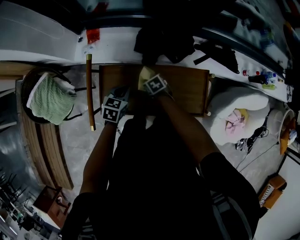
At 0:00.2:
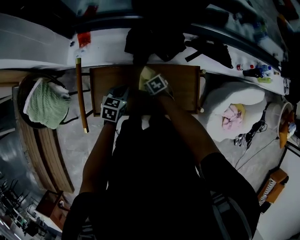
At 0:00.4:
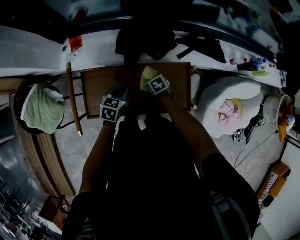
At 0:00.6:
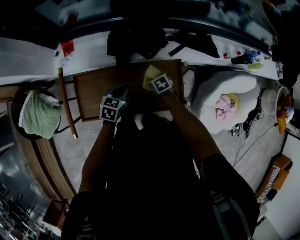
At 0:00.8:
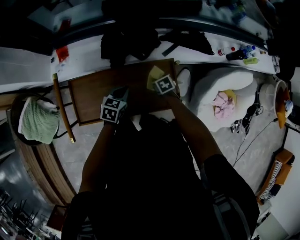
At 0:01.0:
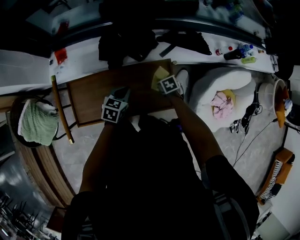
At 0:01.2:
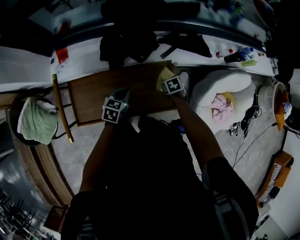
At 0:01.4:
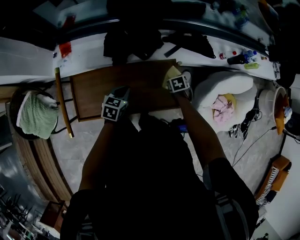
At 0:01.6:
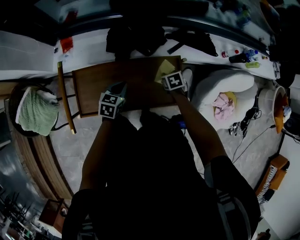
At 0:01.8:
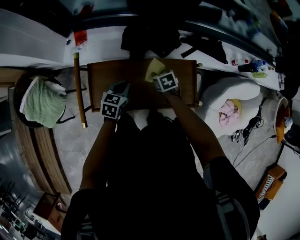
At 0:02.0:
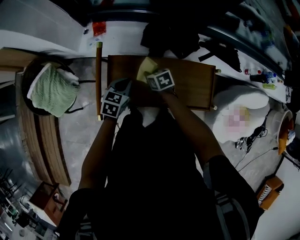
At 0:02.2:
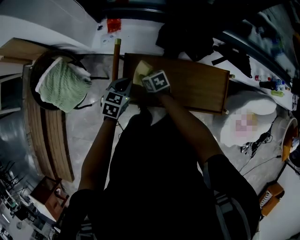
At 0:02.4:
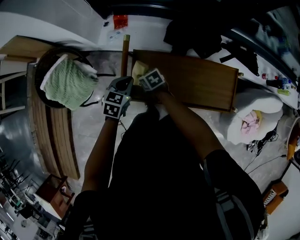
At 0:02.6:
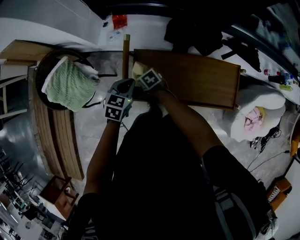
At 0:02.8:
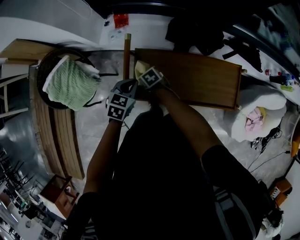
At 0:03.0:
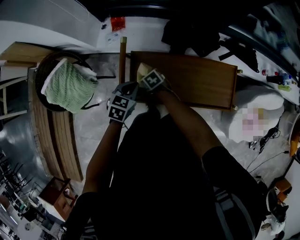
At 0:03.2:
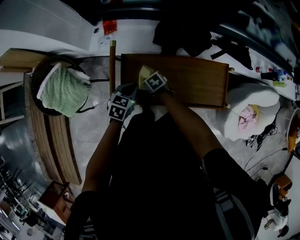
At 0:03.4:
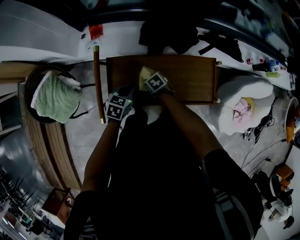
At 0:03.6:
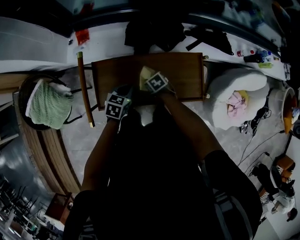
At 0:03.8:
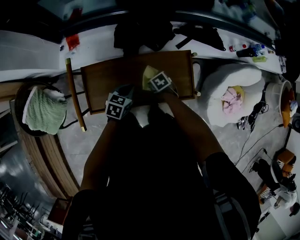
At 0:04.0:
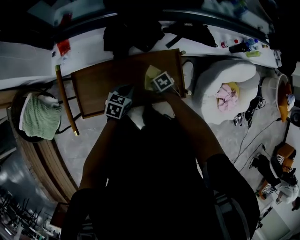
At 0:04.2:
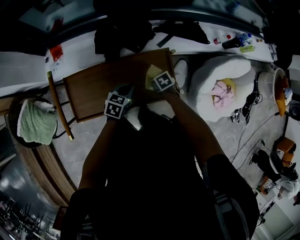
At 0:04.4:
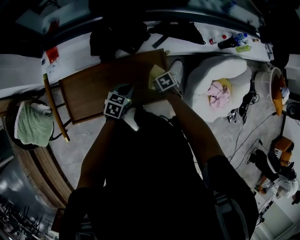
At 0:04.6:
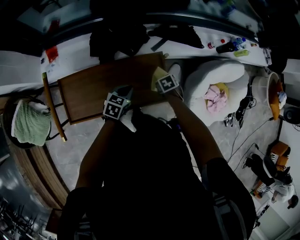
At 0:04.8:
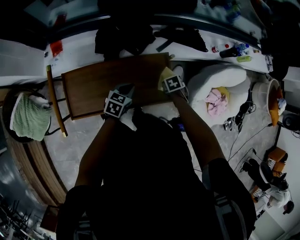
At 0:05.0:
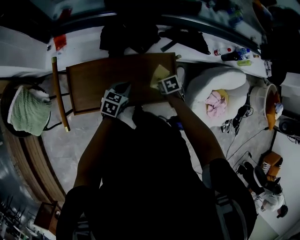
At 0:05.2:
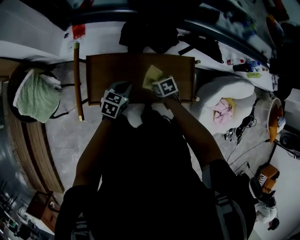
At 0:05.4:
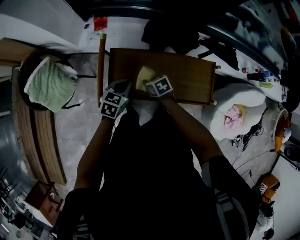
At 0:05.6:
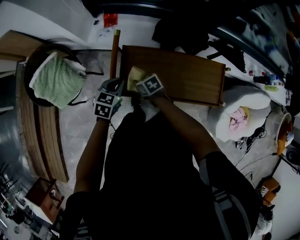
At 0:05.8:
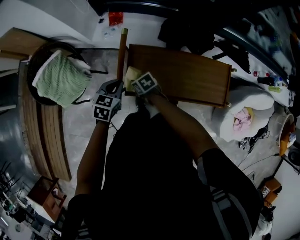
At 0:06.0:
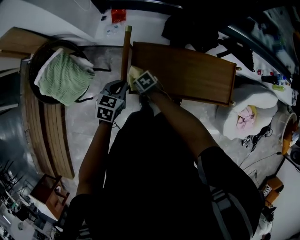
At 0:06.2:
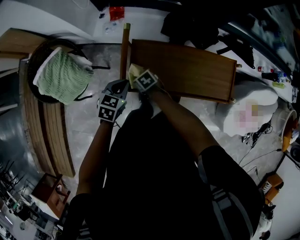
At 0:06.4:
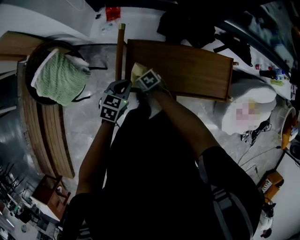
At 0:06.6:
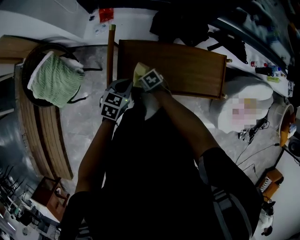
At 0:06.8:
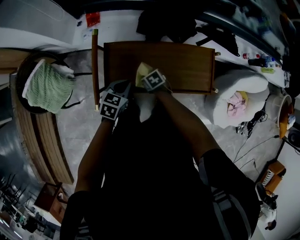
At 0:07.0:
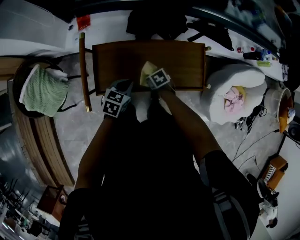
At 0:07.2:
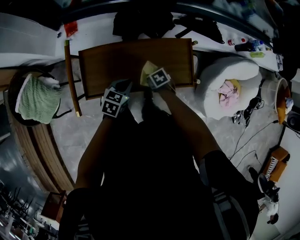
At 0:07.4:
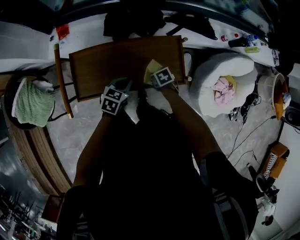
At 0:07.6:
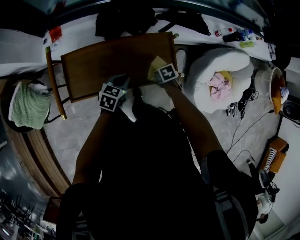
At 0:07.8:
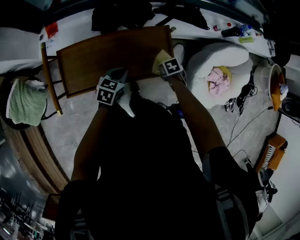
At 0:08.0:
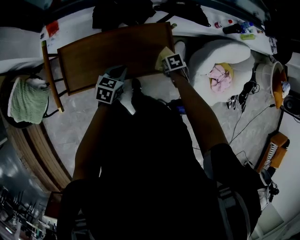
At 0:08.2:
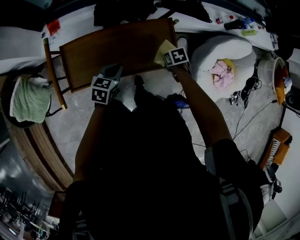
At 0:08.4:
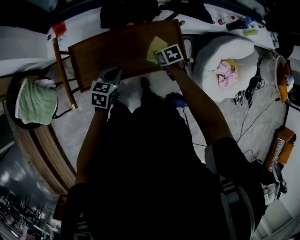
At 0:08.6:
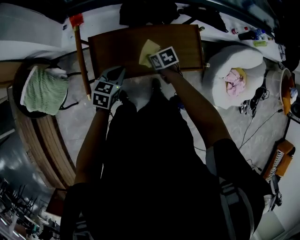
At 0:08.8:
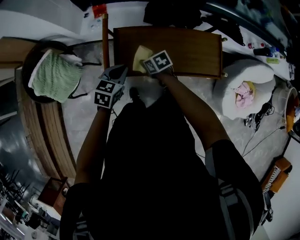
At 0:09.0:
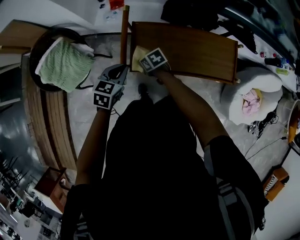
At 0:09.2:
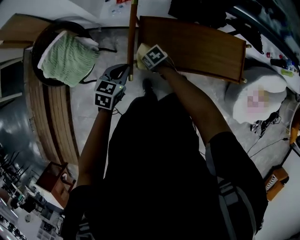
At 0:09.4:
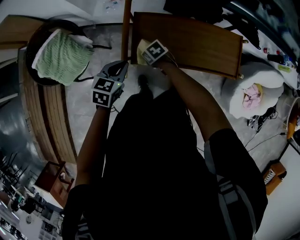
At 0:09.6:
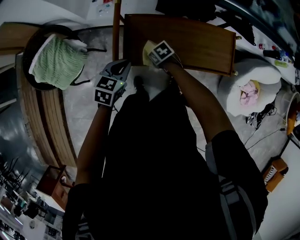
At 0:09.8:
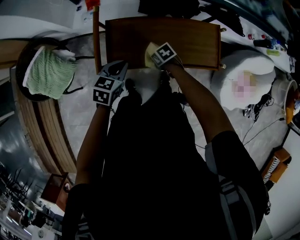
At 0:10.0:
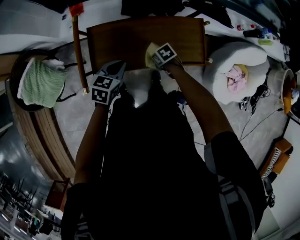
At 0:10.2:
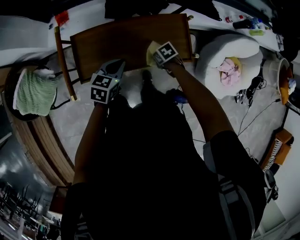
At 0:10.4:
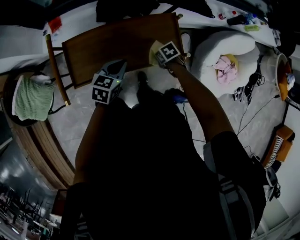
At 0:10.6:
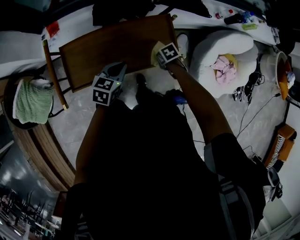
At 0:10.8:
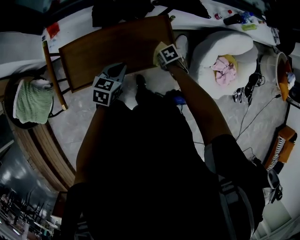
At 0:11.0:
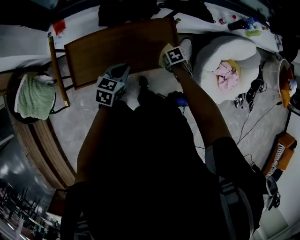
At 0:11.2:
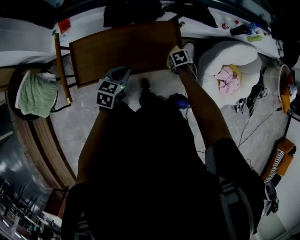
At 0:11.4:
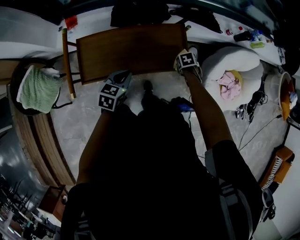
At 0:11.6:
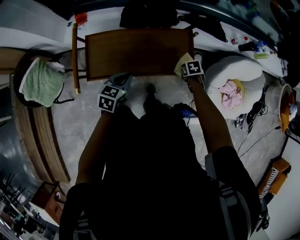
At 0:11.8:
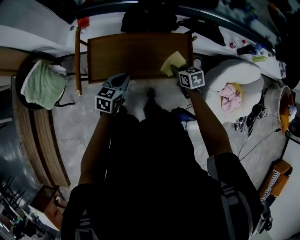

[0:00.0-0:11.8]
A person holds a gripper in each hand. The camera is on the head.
0:00.0 to 0:01.4: The right gripper moves roughly 35 cm, and changes its angle by some 30 degrees. The left gripper shifts by about 15 cm.
0:01.4 to 0:03.0: The left gripper ends up some 30 cm from where it was. The right gripper reaches approximately 5 cm upward, then returns, and swivels roughly 40 degrees.
0:03.0 to 0:04.4: The left gripper ends up about 35 cm from where it was. Meanwhile the right gripper ends up roughly 50 cm from where it was, and turns by about 30 degrees.
0:04.4 to 0:06.0: The two grippers travel together, some 50 cm. The left gripper swivels some 20 degrees. Meanwhile the right gripper turns by approximately 30 degrees.
0:06.0 to 0:07.4: The right gripper moves roughly 40 cm, and swivels roughly 30 degrees, while the left gripper moves approximately 30 cm.
0:07.4 to 0:08.8: The right gripper shifts by roughly 30 cm, and swivels roughly 20 degrees. Meanwhile the left gripper moves some 25 cm.
0:08.8 to 0:10.4: The left gripper heads to the right, covering some 20 cm; the right gripper shifts roughly 35 cm to the right and backward, and swivels roughly 20 degrees.
0:10.4 to 0:11.8: The left gripper ends up some 10 cm from where it was, while the right gripper is displaced upward by roughly 10 cm, and rotates approximately 30 degrees.

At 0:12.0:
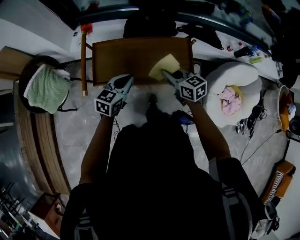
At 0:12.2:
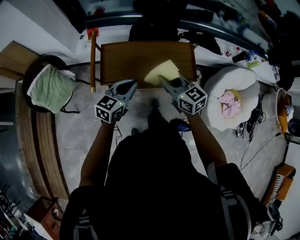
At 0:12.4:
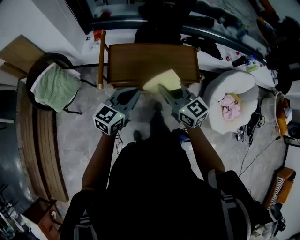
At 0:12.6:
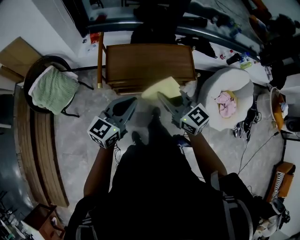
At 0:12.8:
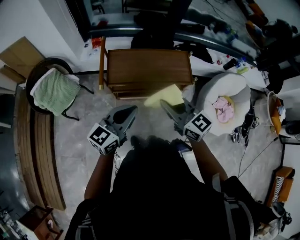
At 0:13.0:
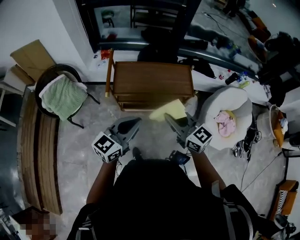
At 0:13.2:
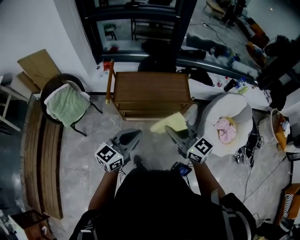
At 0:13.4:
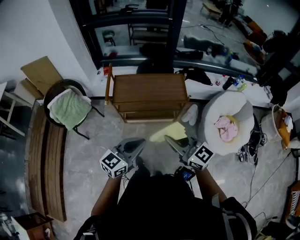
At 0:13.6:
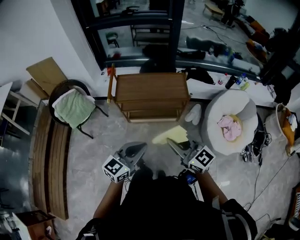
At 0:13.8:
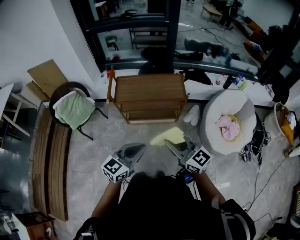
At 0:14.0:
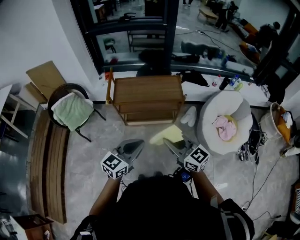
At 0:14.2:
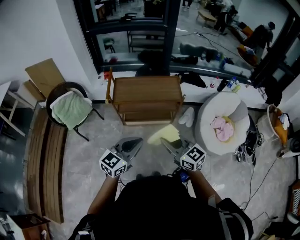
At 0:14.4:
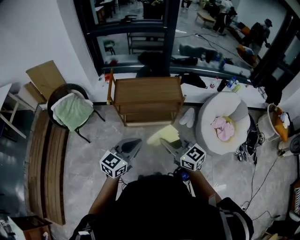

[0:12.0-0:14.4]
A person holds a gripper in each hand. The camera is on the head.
0:12.0 to 0:13.2: The grippers both shift backward and upward by approximately 35 cm. The left gripper swivels approximately 20 degrees. Meanwhile the right gripper changes its angle by approximately 30 degrees.
0:13.2 to 0:14.4: The two grippers go some 15 cm backward.

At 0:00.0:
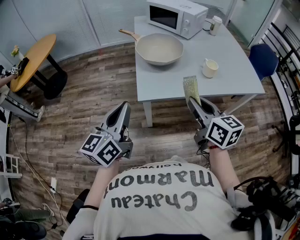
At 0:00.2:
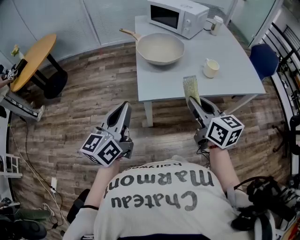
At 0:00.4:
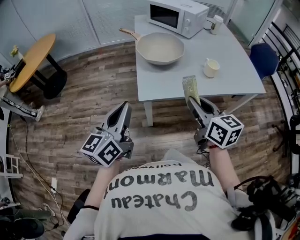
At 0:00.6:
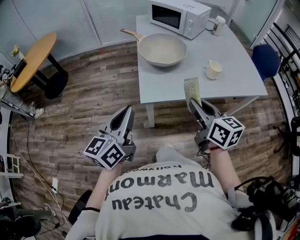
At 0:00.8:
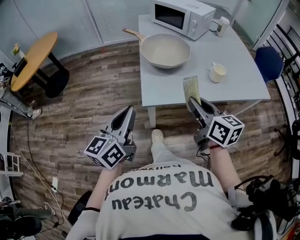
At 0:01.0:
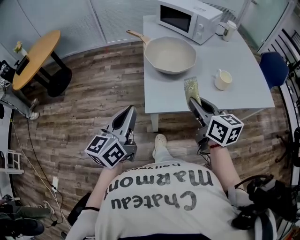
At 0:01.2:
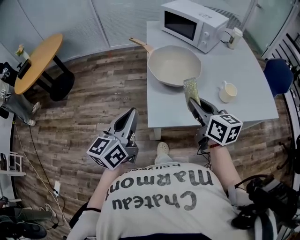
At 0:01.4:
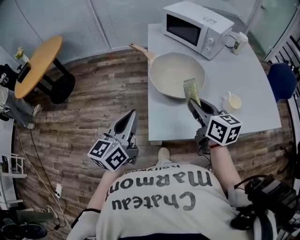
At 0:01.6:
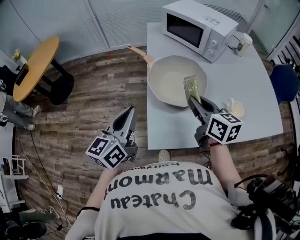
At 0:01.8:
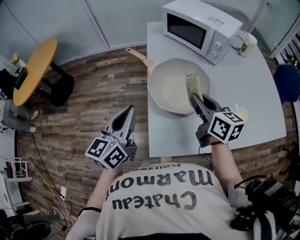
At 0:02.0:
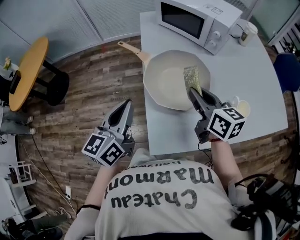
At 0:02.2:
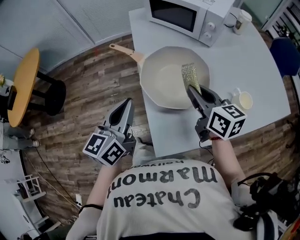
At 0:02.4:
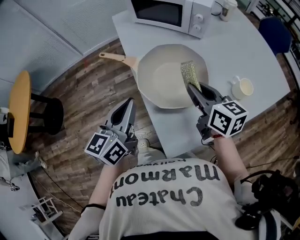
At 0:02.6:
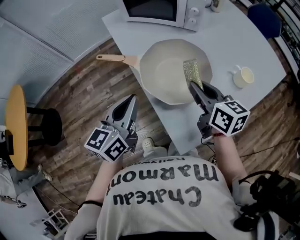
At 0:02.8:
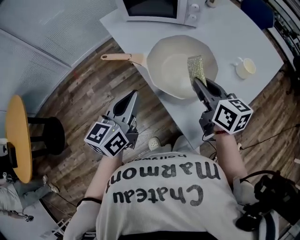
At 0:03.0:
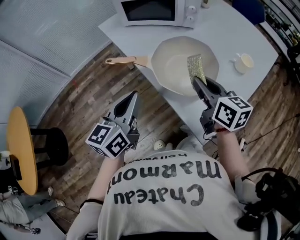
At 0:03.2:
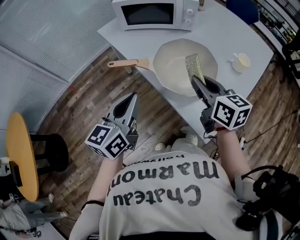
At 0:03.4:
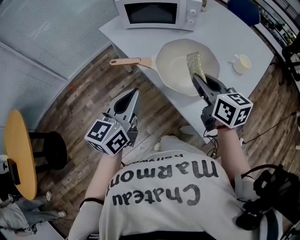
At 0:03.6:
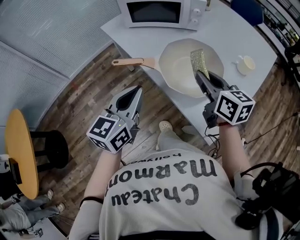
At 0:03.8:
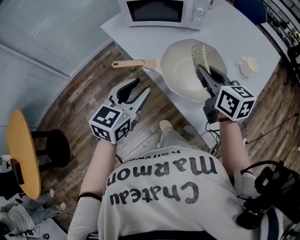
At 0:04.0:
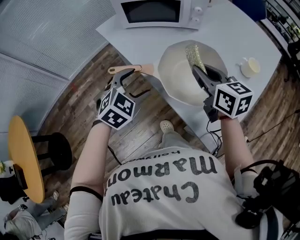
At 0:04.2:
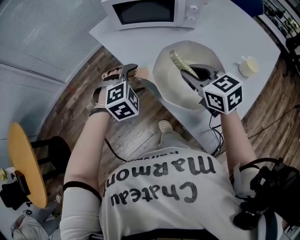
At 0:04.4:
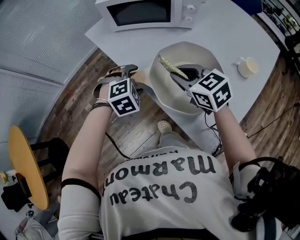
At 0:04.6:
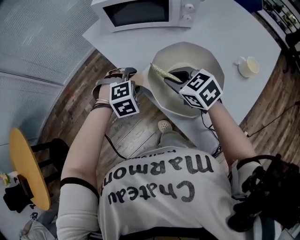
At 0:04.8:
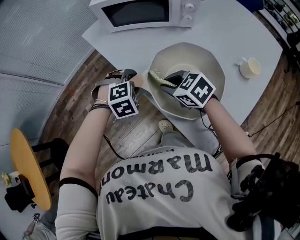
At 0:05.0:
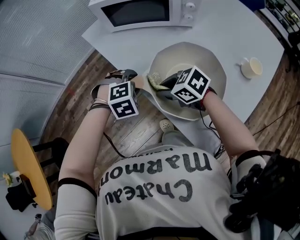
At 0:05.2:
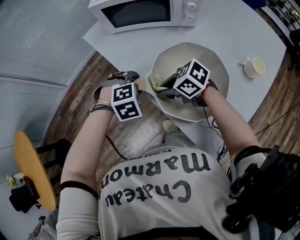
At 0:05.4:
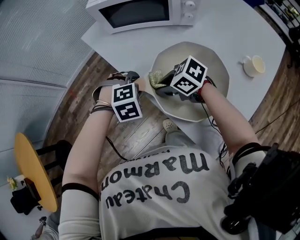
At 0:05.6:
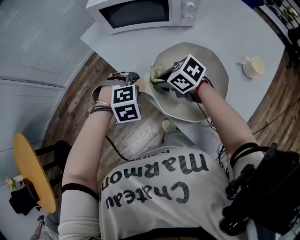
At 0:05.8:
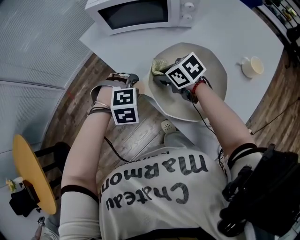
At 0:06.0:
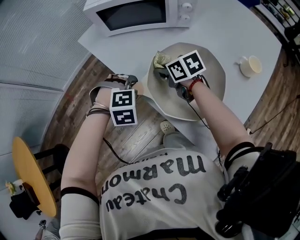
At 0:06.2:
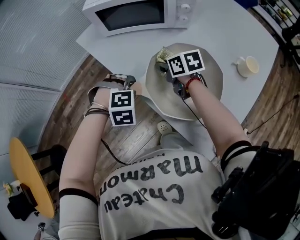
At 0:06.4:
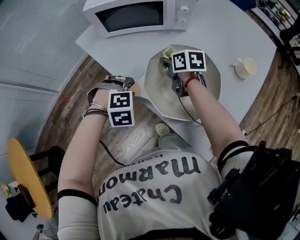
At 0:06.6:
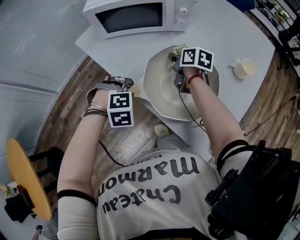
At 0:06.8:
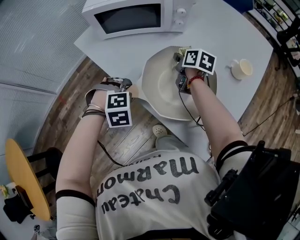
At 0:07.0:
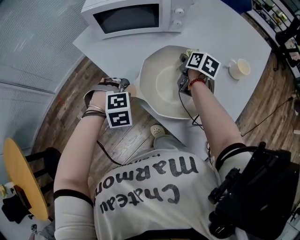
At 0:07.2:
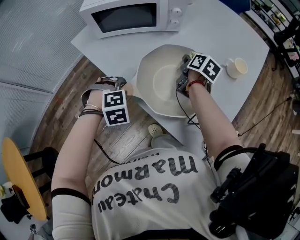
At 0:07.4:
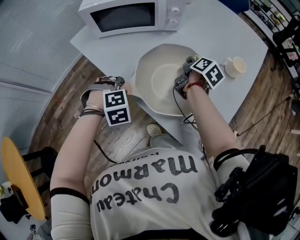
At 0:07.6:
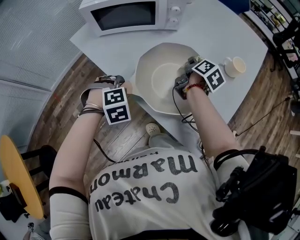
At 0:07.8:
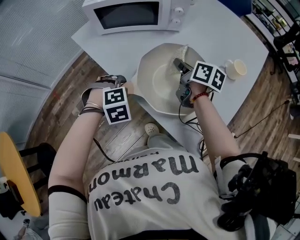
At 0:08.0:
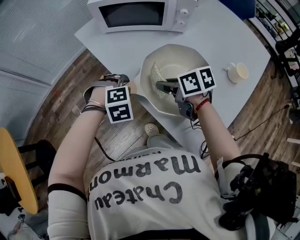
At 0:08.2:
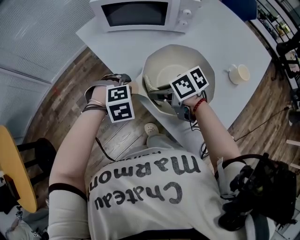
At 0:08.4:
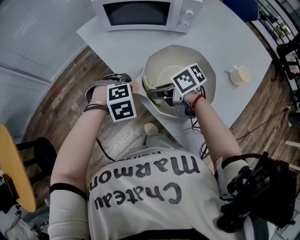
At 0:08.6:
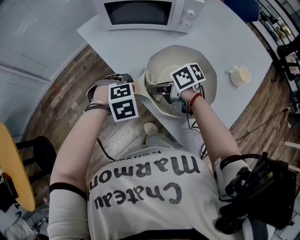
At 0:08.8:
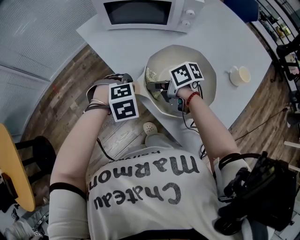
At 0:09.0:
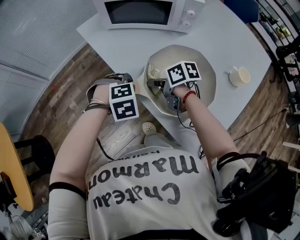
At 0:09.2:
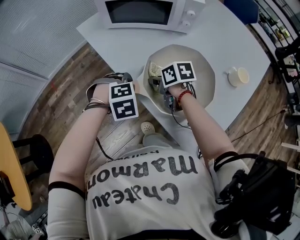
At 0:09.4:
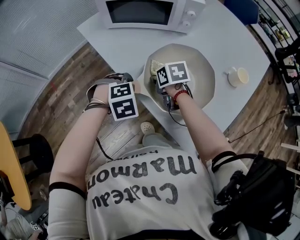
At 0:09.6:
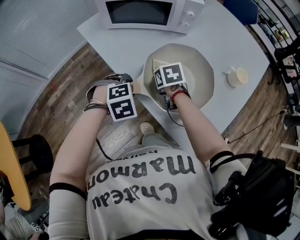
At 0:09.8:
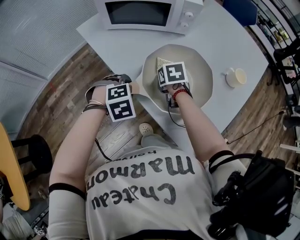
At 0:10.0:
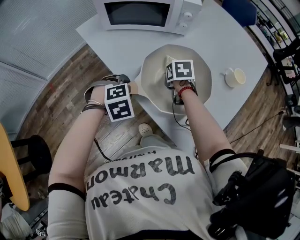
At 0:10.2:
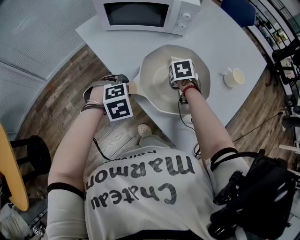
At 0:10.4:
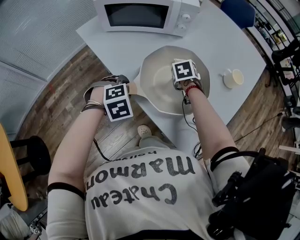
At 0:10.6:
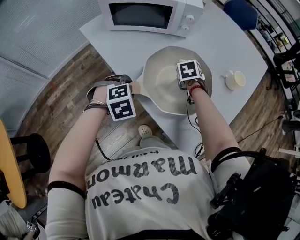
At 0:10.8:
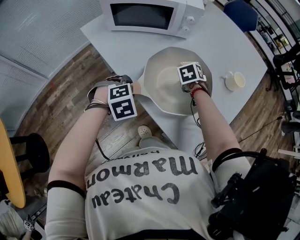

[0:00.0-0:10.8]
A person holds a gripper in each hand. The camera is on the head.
0:00.0 to 0:01.6: The grippers both shift forward by about 30 cm.
0:01.6 to 0:03.0: The right gripper moves some 10 cm, and swivels some 40 degrees. The left gripper changes place by some 20 cm, and turns by approximately 40 degrees.
0:03.0 to 0:04.6: The left gripper moves forward and downward, some 25 cm, points its fingers some 60 degrees further downward, and opens, while the right gripper shifts approximately 20 cm forward, downward and to the left, and changes its angle by approximately 40 degrees.
0:04.6 to 0:06.2: The right gripper goes about 10 cm forward and downward, and rotates approximately 40 degrees.
0:06.2 to 0:07.8: The right gripper turns by roughly 40 degrees.
0:07.8 to 0:09.2: The right gripper changes place by roughly 15 cm, and swivels about 40 degrees.
0:09.2 to 0:10.8: The right gripper ends up some 20 cm from where it was, and changes its angle by some 50 degrees.
